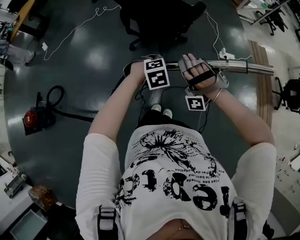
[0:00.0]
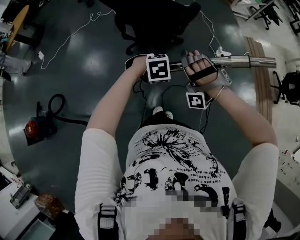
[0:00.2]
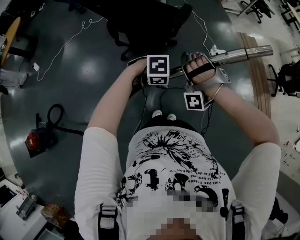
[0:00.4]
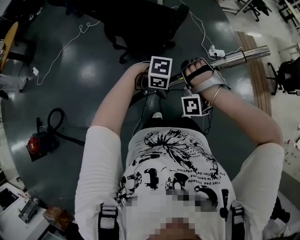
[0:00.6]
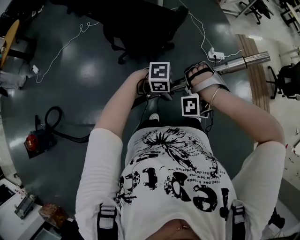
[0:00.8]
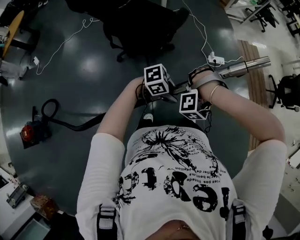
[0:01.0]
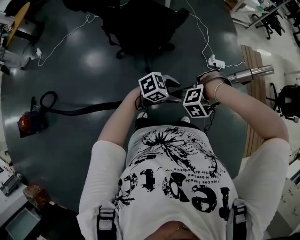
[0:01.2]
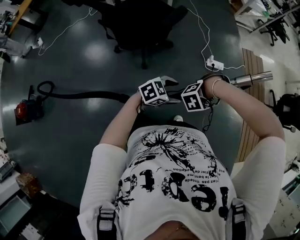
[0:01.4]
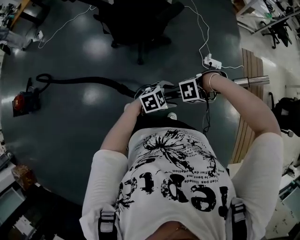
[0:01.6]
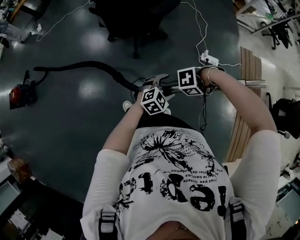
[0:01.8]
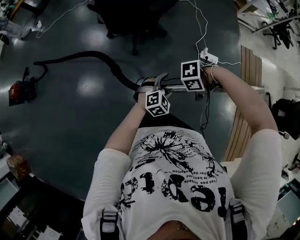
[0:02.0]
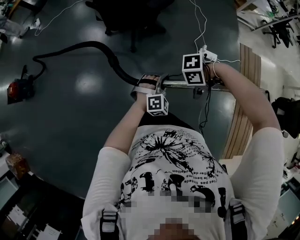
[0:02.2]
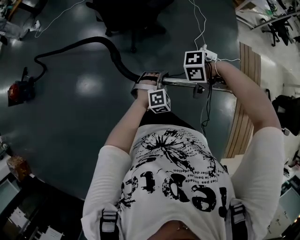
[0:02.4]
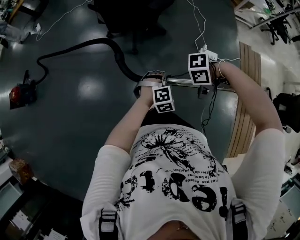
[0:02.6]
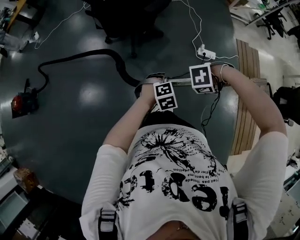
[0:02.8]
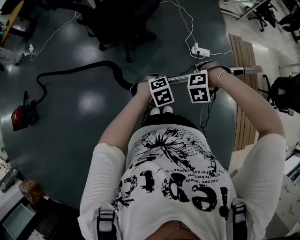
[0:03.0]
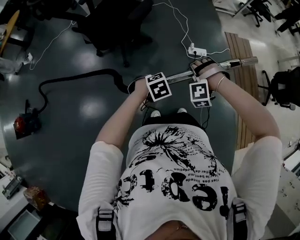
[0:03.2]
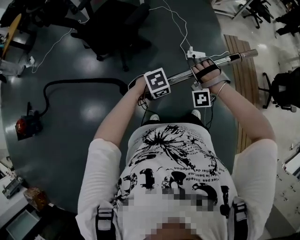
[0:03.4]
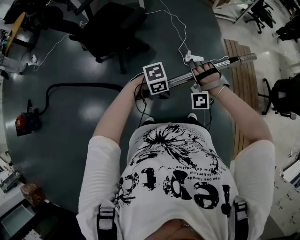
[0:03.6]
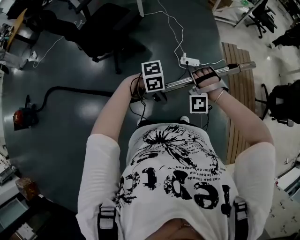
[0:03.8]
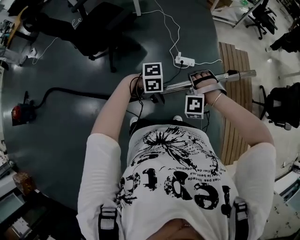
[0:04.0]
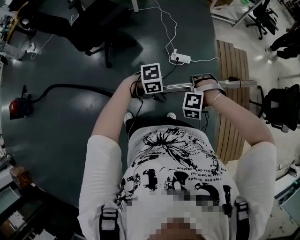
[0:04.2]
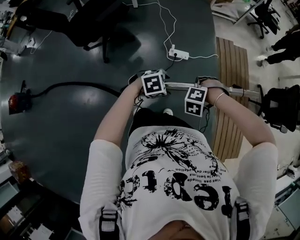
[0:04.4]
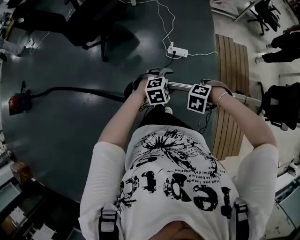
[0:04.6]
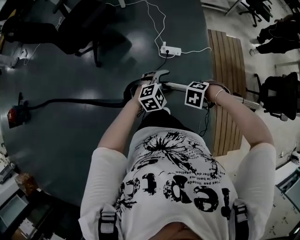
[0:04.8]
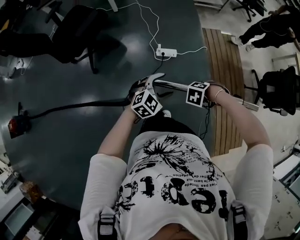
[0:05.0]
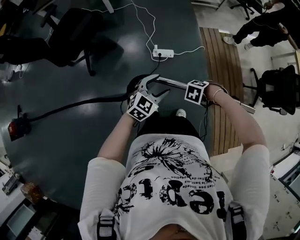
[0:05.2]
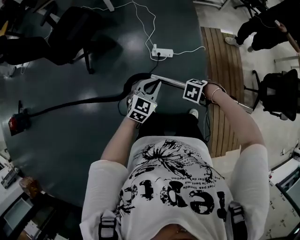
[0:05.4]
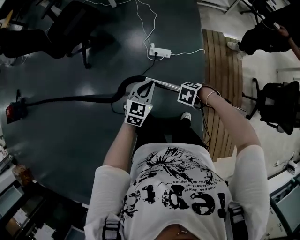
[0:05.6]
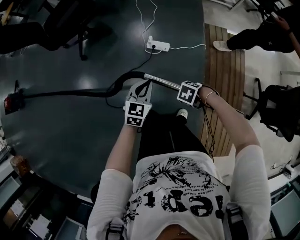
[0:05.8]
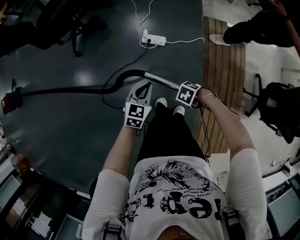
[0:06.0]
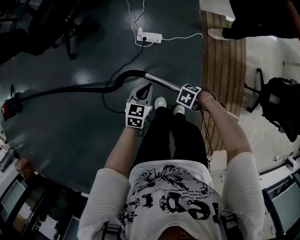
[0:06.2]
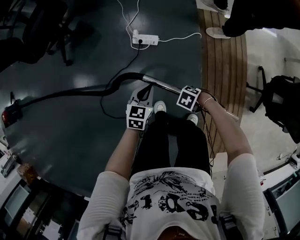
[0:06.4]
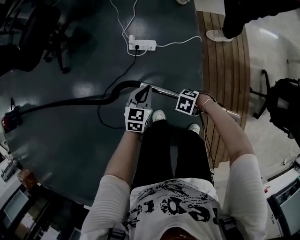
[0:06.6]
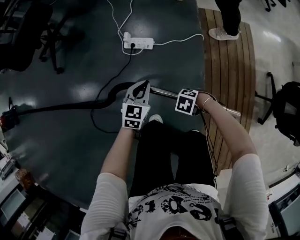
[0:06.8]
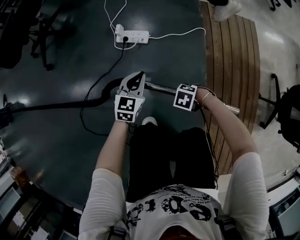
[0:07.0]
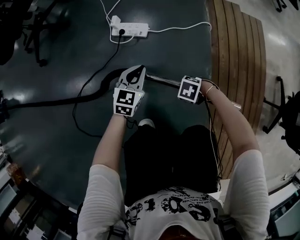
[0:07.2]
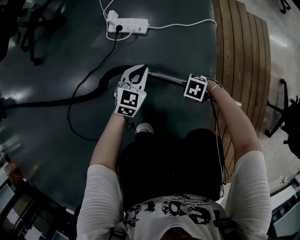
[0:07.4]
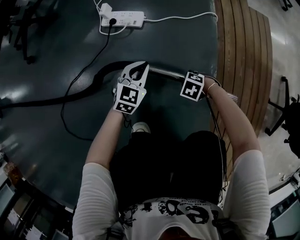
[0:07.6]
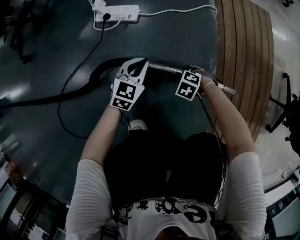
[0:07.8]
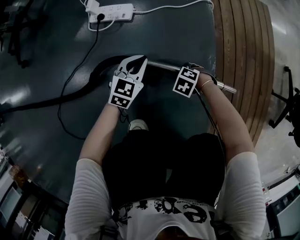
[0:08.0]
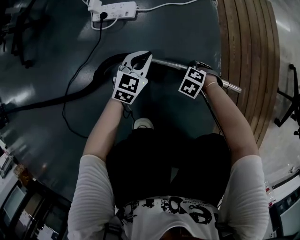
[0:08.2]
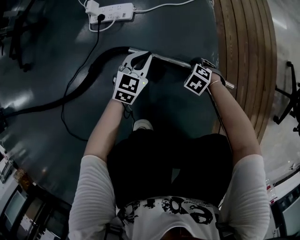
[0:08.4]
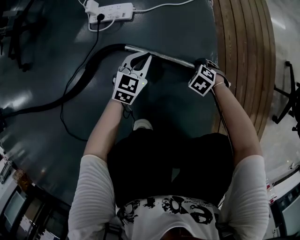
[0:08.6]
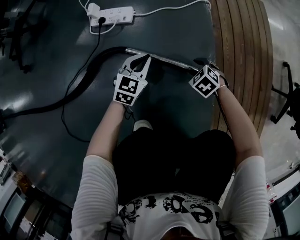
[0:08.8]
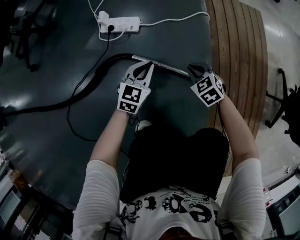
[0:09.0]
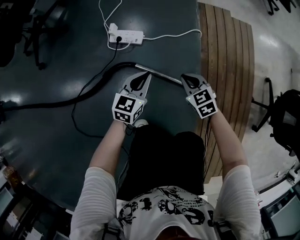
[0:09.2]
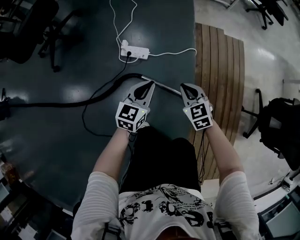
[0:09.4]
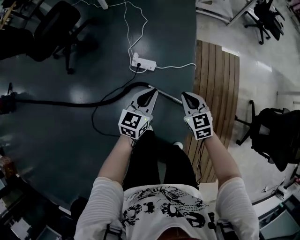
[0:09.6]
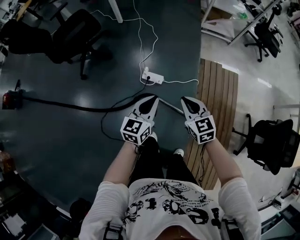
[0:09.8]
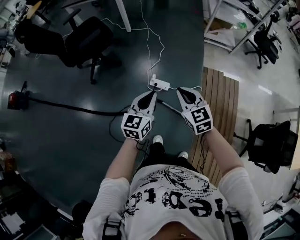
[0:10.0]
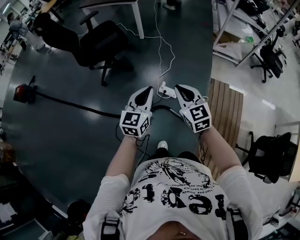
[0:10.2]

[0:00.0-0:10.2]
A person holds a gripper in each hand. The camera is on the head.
0.0 to 1.4 s: The left gripper changes place by roughly 30 cm, angles its fingers upward, by some 30 degrees, and opens.
1.4 to 3.0 s: The left gripper ends up some 10 cm from where it was, tilts its fingers roughly 30 degrees downward, and closes its fingers.
3.0 to 4.4 s: The left gripper changes place by some 40 cm, and opens up.
4.4 to 5.8 s: The left gripper moves some 20 cm, rotates about 70 degrees, and closes up.
5.8 to 7.2 s: The left gripper travels downward by roughly 50 cm.
7.2 to 8.8 s: The left gripper heads downward, covering about 15 cm.
8.8 to 10.2 s: The left gripper is displaced upward by approximately 90 cm, and turns by approximately 40 degrees.

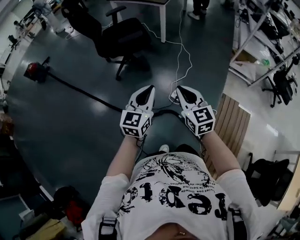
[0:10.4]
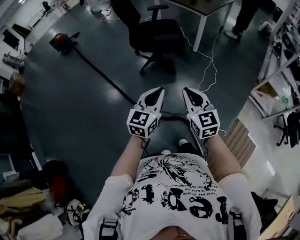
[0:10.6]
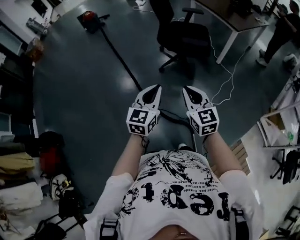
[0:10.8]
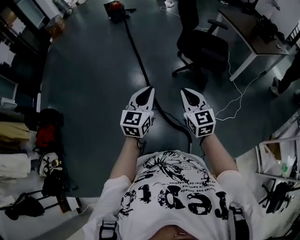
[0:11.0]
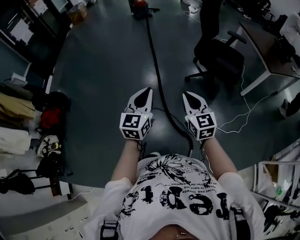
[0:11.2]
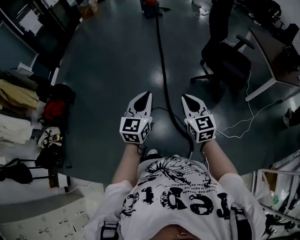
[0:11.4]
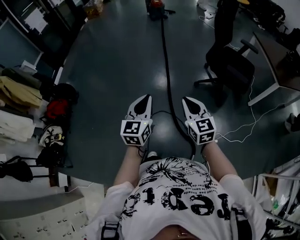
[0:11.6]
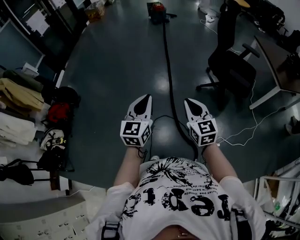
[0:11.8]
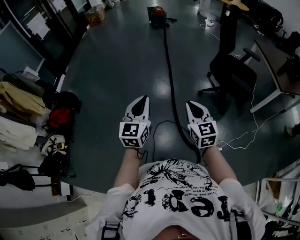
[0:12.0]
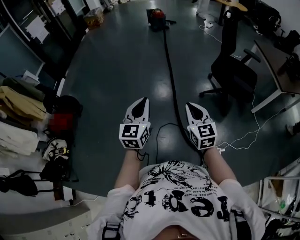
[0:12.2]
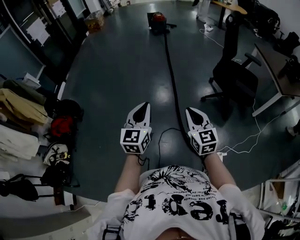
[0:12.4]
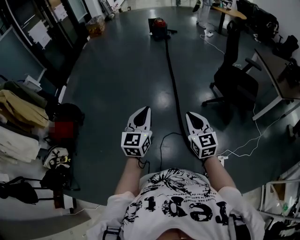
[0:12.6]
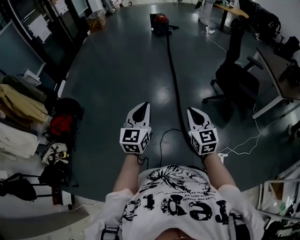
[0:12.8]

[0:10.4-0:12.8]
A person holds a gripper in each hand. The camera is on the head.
10.4 to 11.6 s: The left gripper ends up about 30 cm from where it was, and swivels some 70 degrees.
11.6 to 12.8 s: The left gripper changes place by some 20 cm.

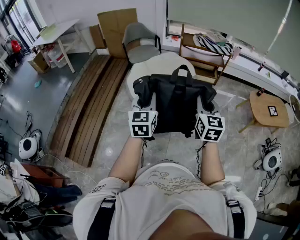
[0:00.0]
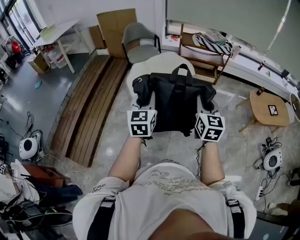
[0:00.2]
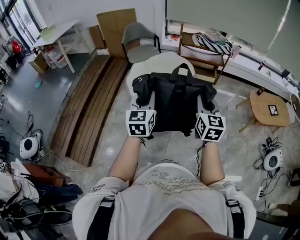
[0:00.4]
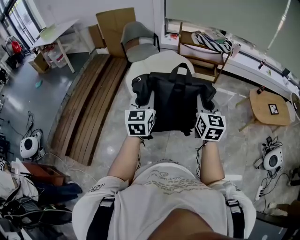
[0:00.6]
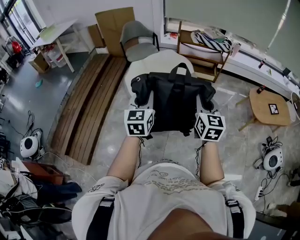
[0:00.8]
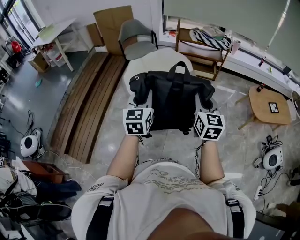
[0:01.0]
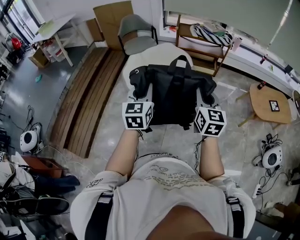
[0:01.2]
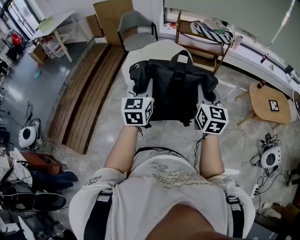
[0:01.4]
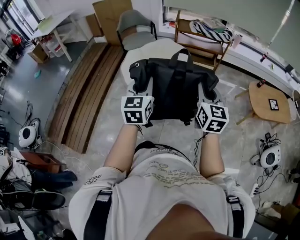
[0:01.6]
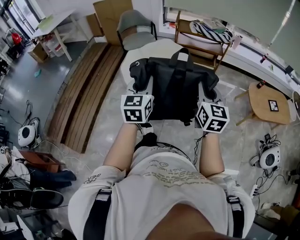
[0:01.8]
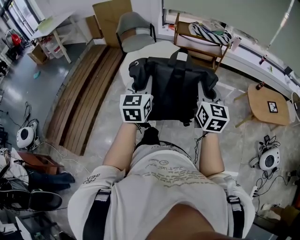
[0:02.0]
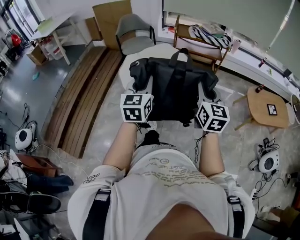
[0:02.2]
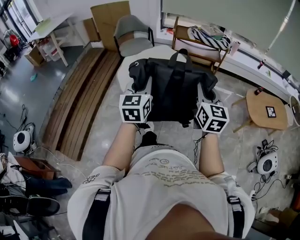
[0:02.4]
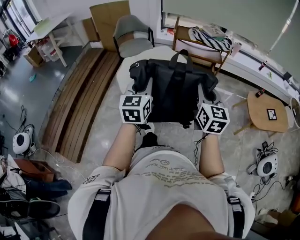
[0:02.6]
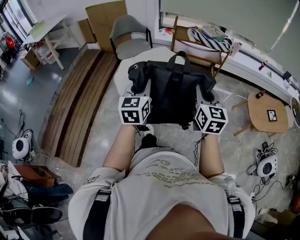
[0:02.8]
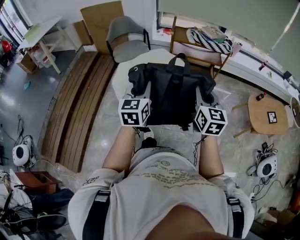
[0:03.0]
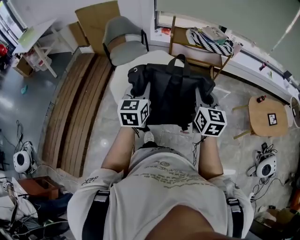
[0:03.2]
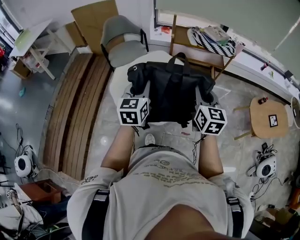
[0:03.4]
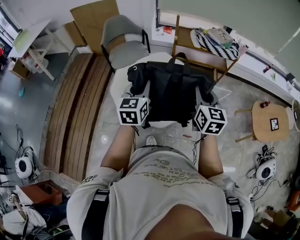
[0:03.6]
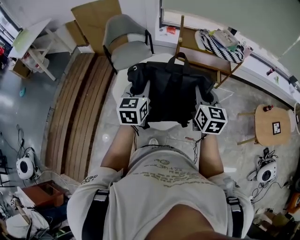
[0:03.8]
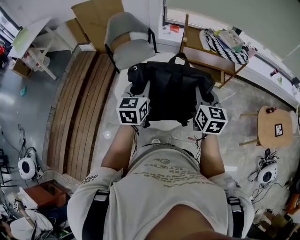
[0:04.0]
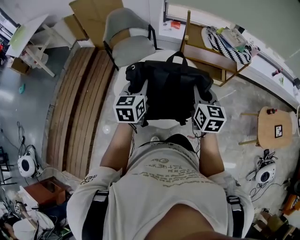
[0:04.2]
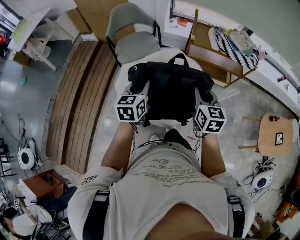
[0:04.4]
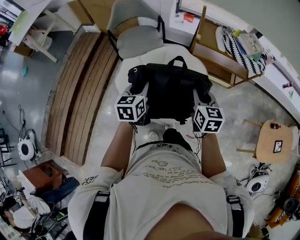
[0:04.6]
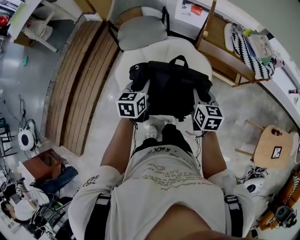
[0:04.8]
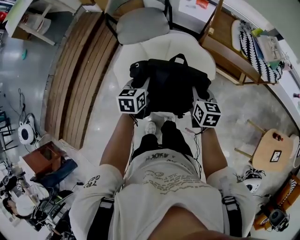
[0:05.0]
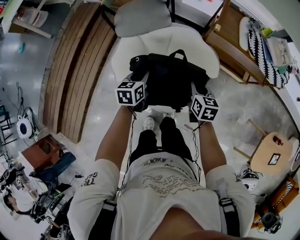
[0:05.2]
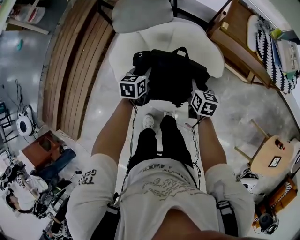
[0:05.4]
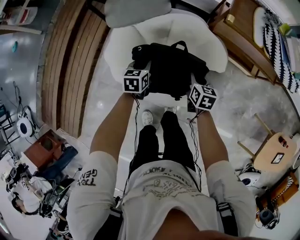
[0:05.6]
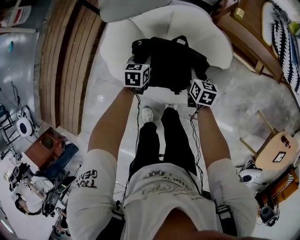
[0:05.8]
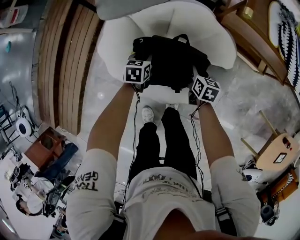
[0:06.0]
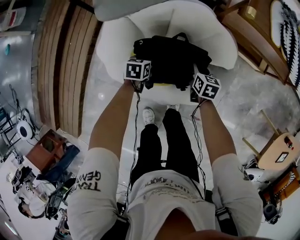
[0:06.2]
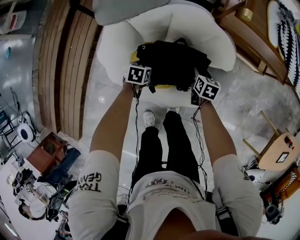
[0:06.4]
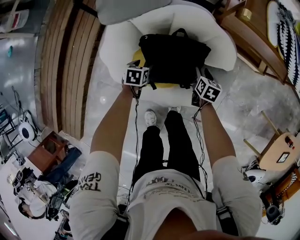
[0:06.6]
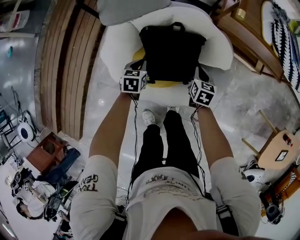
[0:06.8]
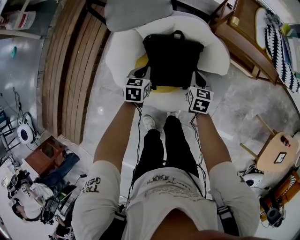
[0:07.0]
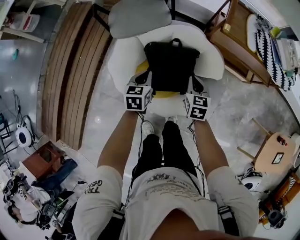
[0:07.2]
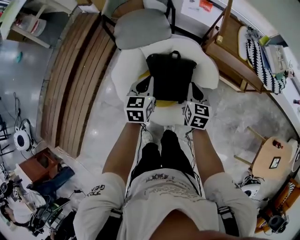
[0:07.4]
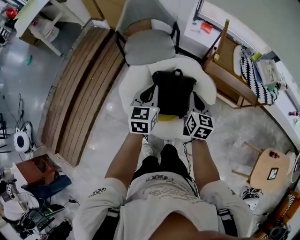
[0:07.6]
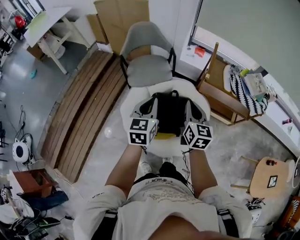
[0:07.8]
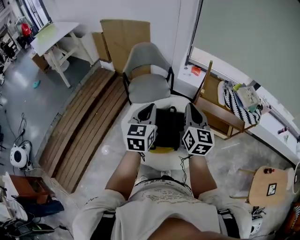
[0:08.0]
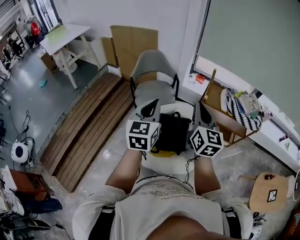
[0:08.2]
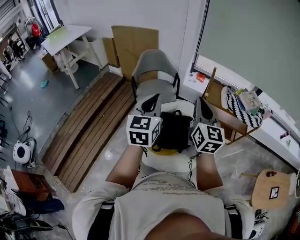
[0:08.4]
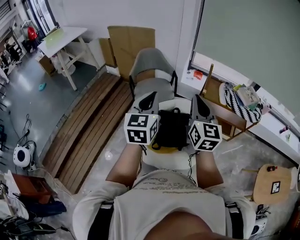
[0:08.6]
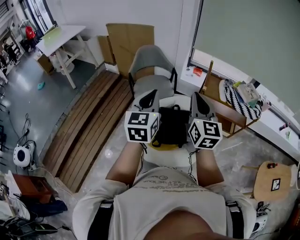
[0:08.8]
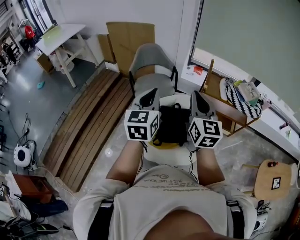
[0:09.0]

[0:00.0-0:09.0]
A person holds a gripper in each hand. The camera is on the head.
0.0 to 1.6 s: The two grippers go about 10 cm to the right.
1.6 to 3.0 s: The two grippers go roughly 20 cm forward.
3.0 to 4.4 s: The grippers both shift forward by approximately 30 cm.
4.4 to 6.0 s: The grippers both shift downward and forward by some 50 cm. The left gripper tilts its fingers about 30 degrees downward. The right gripper turns by roughly 30 degrees.
6.0 to 7.6 s: Both grippers travel together upward, approximately 35 cm. The left gripper points its fingers approximately 30 degrees further upward, and opens, then closes once more; the right gripper turns by about 30 degrees, and opens, then closes again.
7.6 to 9.0 s: The grippers both shift upward by approximately 30 cm. The right gripper rotates some 30 degrees.

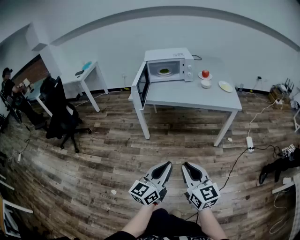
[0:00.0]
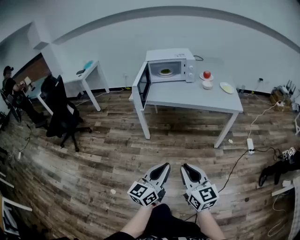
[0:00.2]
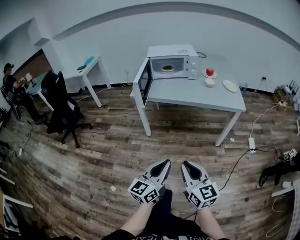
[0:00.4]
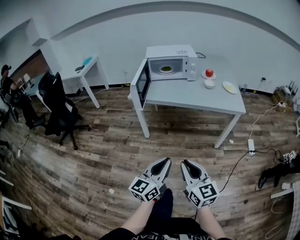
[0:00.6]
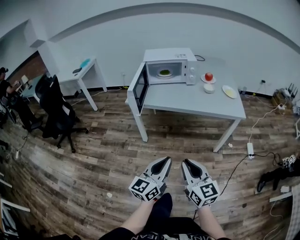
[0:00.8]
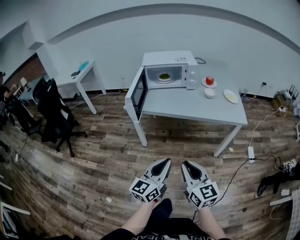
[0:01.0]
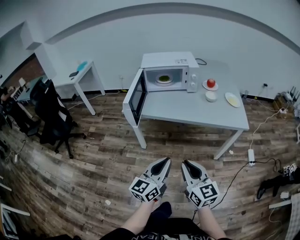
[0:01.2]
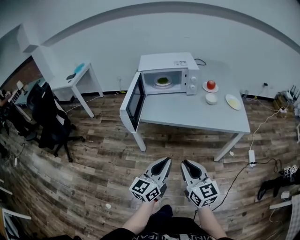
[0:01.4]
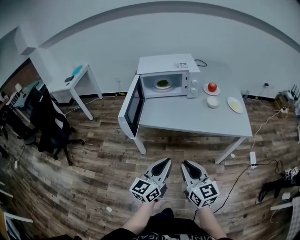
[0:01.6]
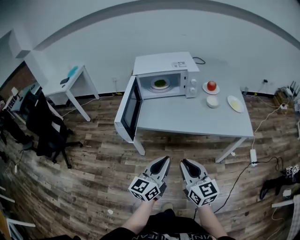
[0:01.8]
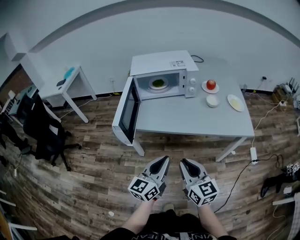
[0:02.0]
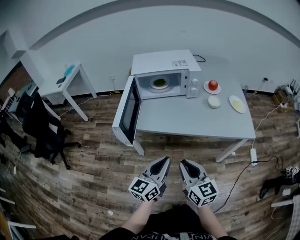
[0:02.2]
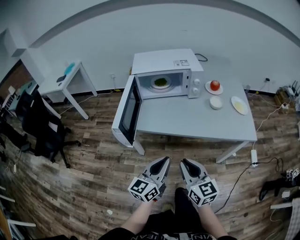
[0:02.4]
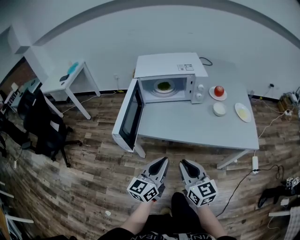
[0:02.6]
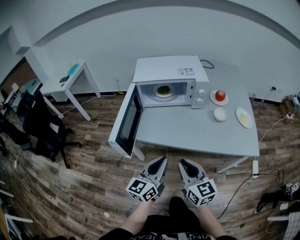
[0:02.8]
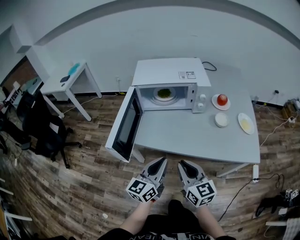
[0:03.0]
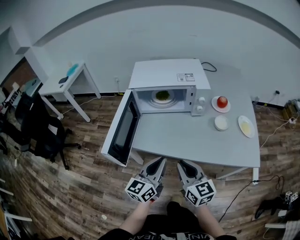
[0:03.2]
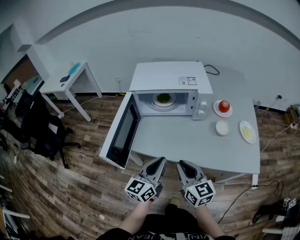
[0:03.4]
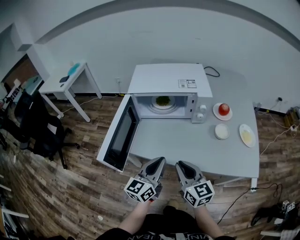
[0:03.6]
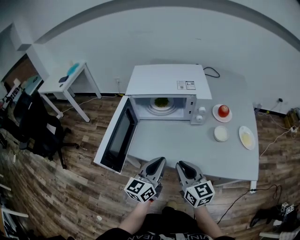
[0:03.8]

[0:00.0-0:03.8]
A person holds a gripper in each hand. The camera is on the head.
0.0 to 1.2 s: Both grippers move forward, approximately 20 cm.
1.2 to 2.6 s: The two grippers go approximately 20 cm forward.
2.6 to 3.8 s: The grippers both shift forward by roughly 15 cm.
